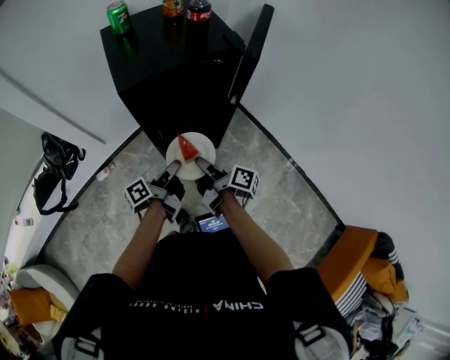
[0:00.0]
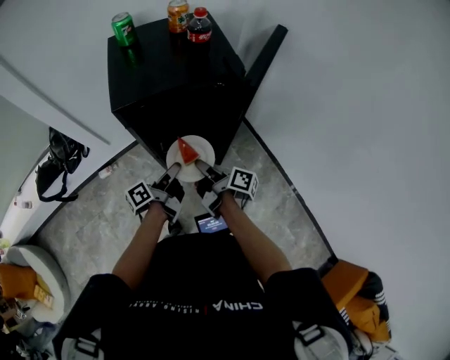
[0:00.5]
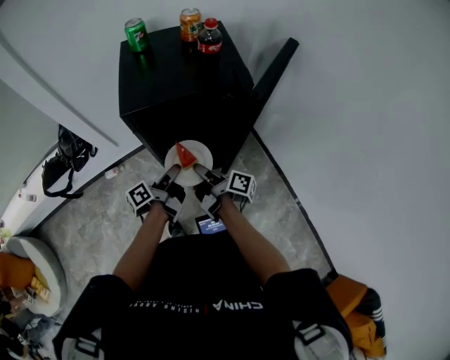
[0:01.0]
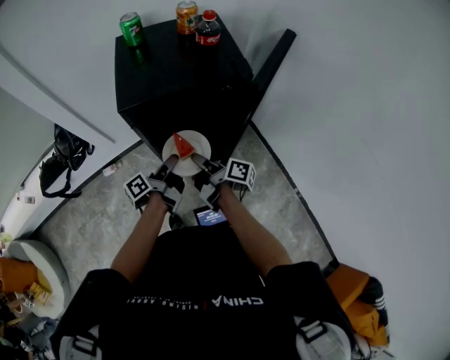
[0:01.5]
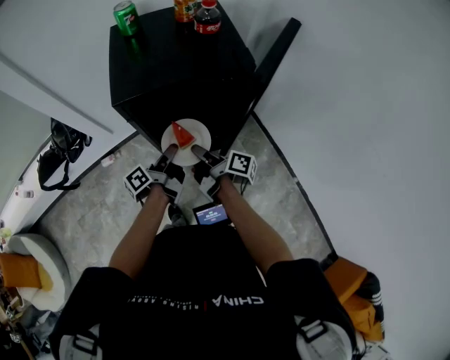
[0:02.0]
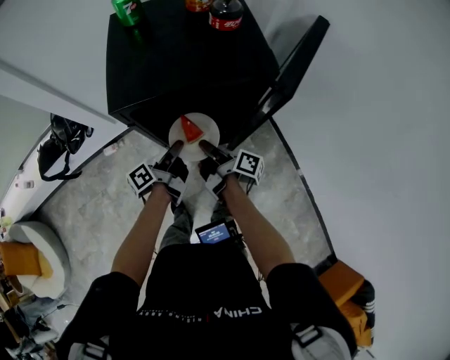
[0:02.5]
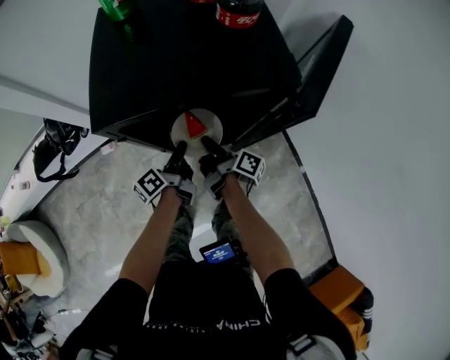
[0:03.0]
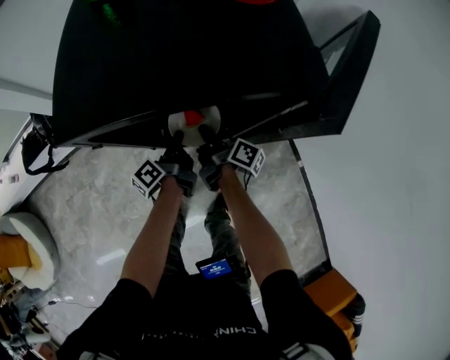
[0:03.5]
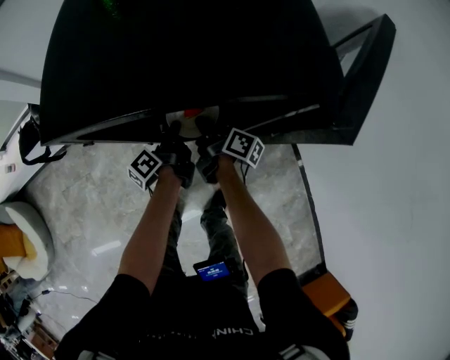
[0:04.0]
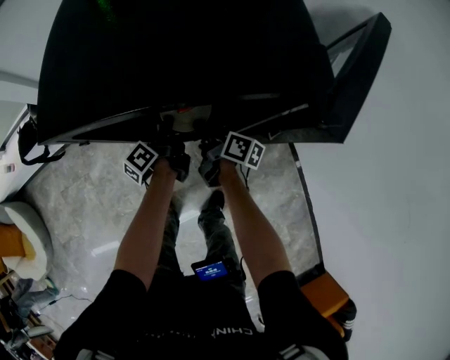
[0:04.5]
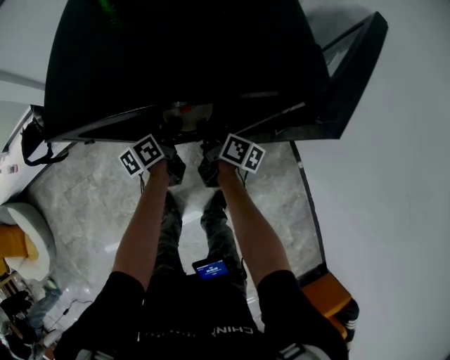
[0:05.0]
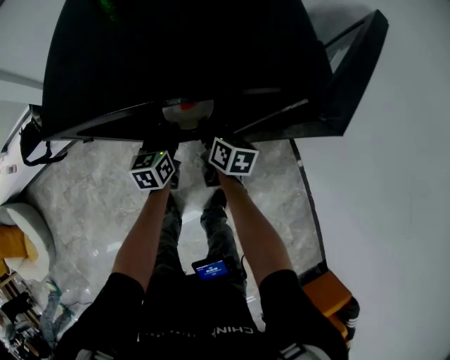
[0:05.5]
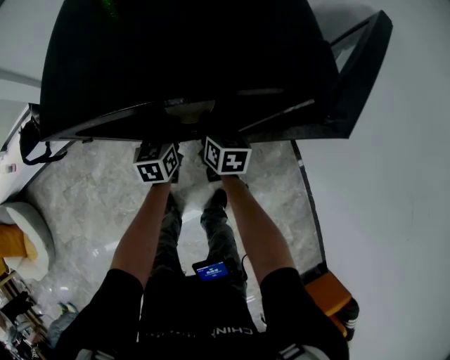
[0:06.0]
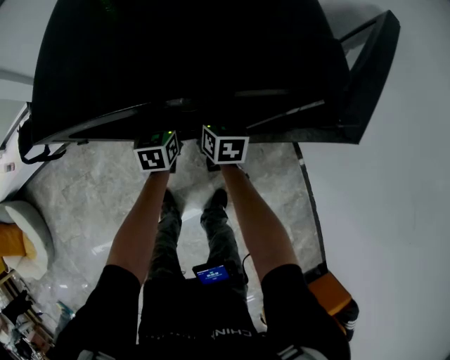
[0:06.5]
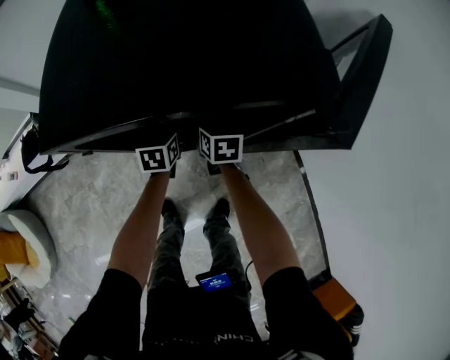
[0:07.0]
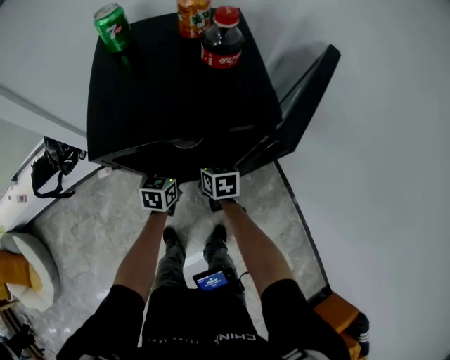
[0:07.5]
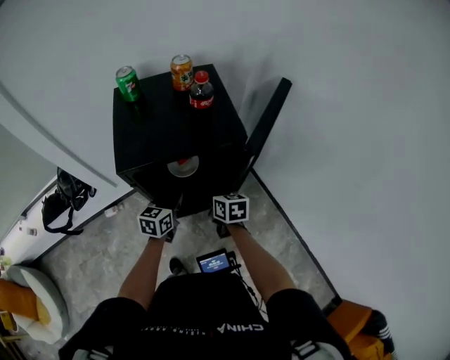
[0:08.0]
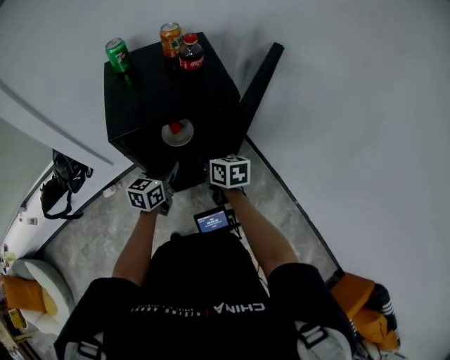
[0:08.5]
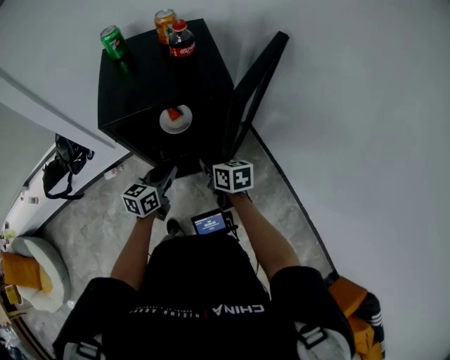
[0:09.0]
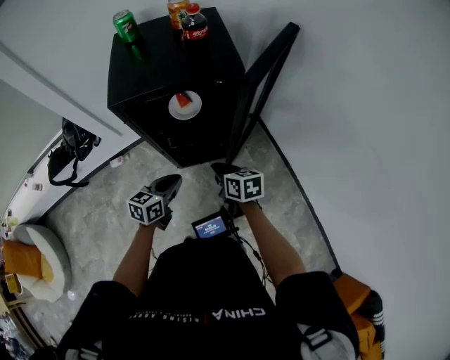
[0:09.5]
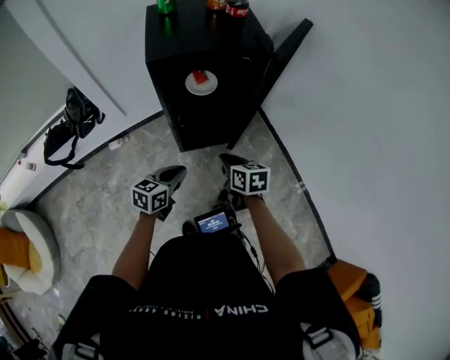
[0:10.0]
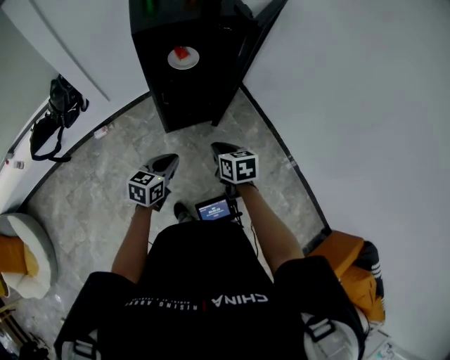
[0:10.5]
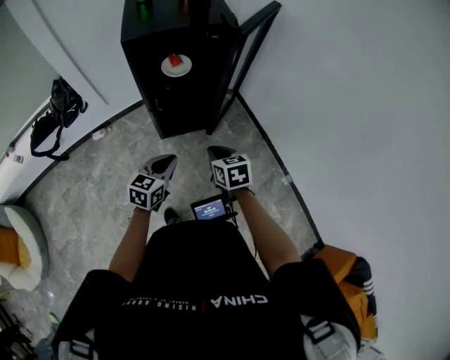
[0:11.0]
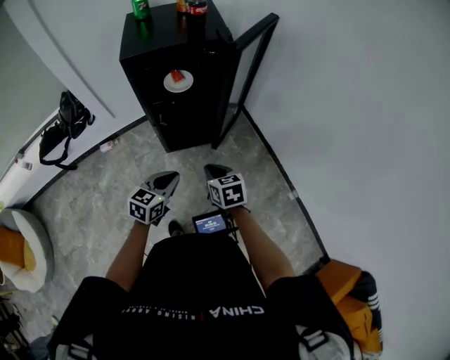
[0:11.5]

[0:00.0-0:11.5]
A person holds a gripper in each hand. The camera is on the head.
0:00.0 to 0:02.0: Both grippers move forward, roughly 10 cm.
0:02.0 to 0:04.0: The grippers both shift downward and forward by roughly 25 cm.
0:04.0 to 0:06.0: The right gripper twists approximately 50 degrees counterclockwise, seen from behind. Meanwhile the left gripper twists approximately 60 degrees clockwise, seen from behind.
0:06.0 to 0:07.5: Both grippers travel together upward, about 5 cm. The left gripper closes its fingers.
0:07.5 to 0:09.5: The two grippers go roughly 20 cm backward.
0:09.5 to 0:11.5: Both grippers travel together backward, some 20 cm.

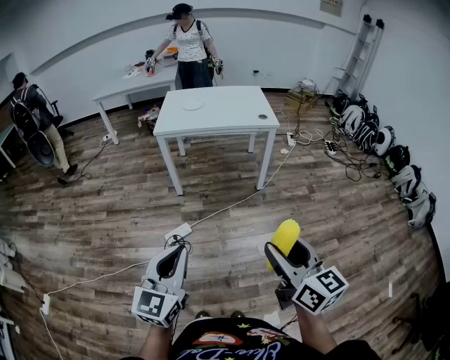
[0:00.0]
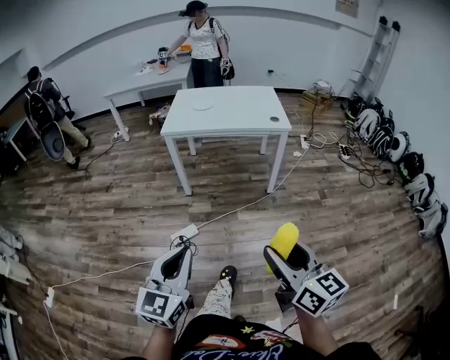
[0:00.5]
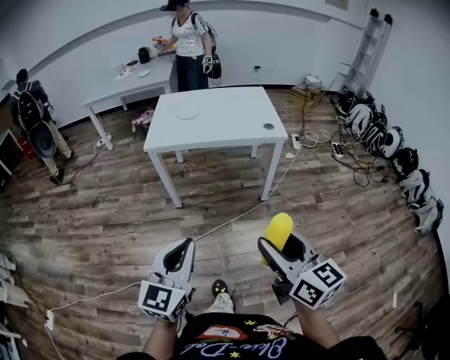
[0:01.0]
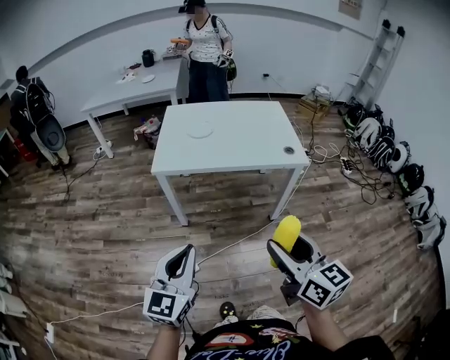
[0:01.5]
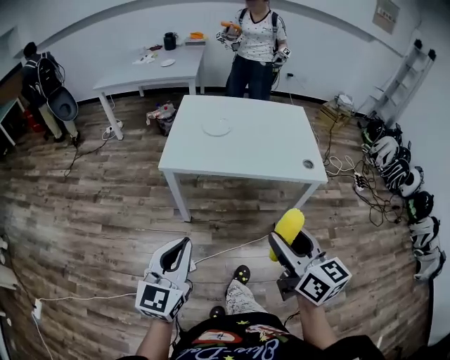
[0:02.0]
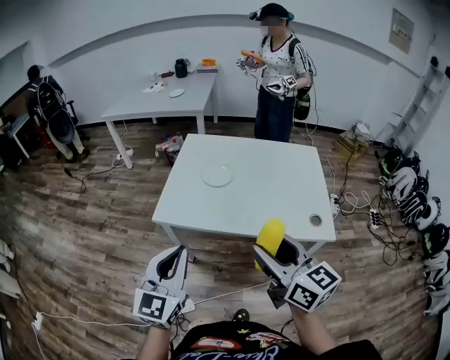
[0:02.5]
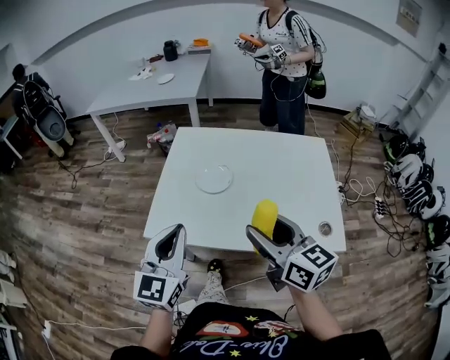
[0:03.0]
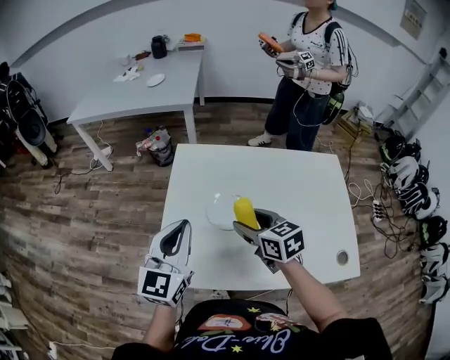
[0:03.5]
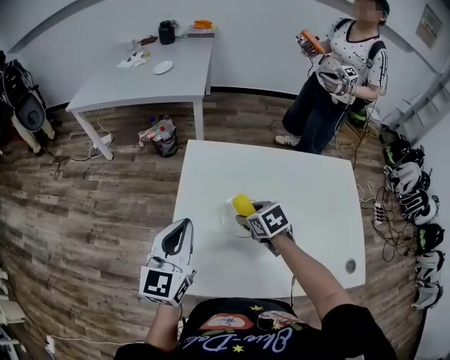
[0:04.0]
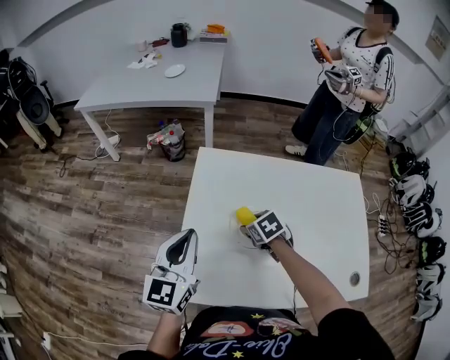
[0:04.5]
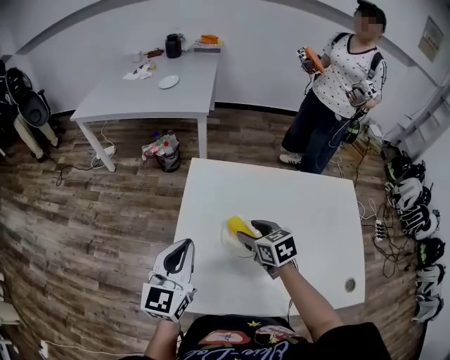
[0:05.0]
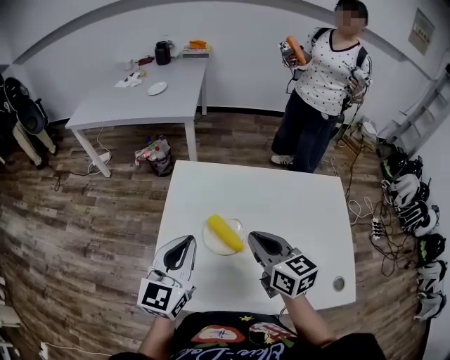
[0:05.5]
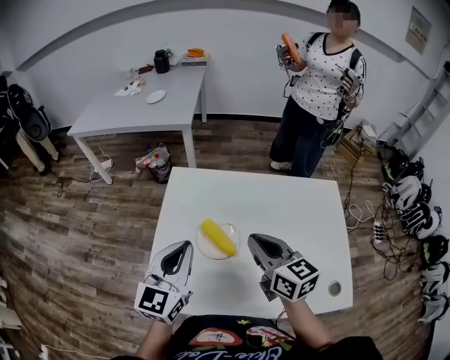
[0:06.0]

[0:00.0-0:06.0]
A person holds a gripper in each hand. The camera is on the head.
0:00.0 to 0:02.0: The two grippers travel together, forward, roughly 50 cm.
0:02.0 to 0:04.0: The pair of grippers is taken forward, some 60 cm. The right gripper points its fingers roughly 50 degrees further downward.
0:04.0 to 0:06.0: The right gripper shifts approximately 20 cm upward, to the right and backward, angles its fingers upward, by some 40 degrees, and closes. The left gripper travels to the right by about 10 cm.

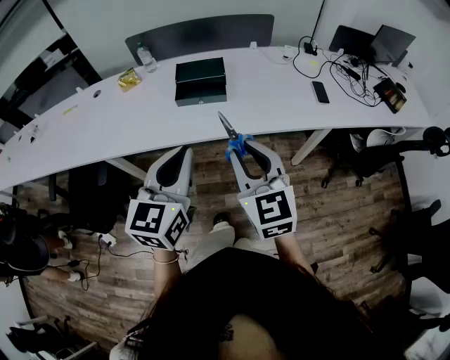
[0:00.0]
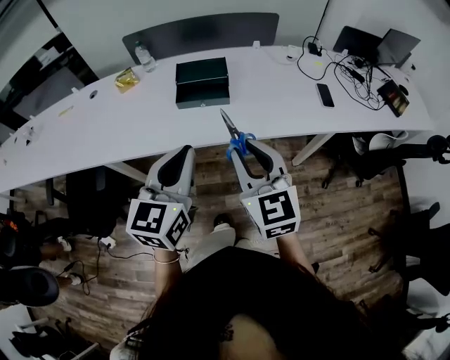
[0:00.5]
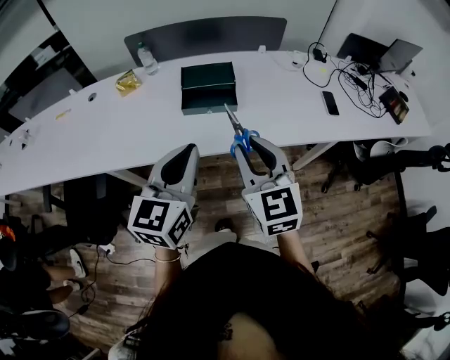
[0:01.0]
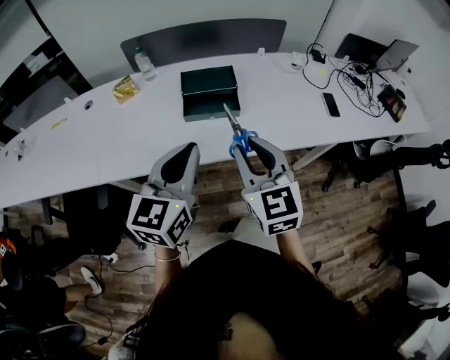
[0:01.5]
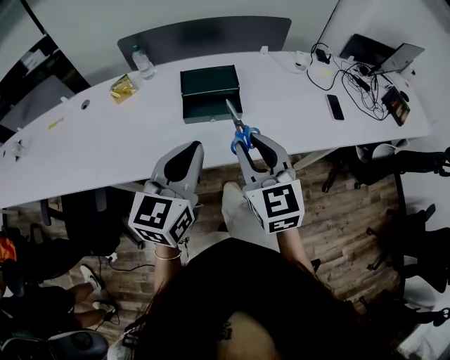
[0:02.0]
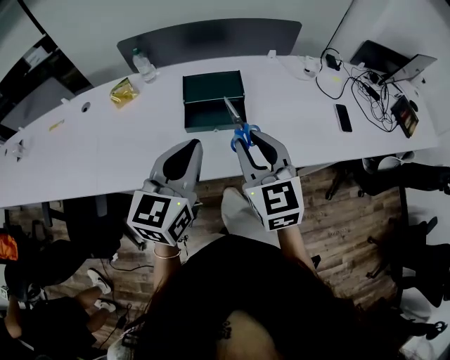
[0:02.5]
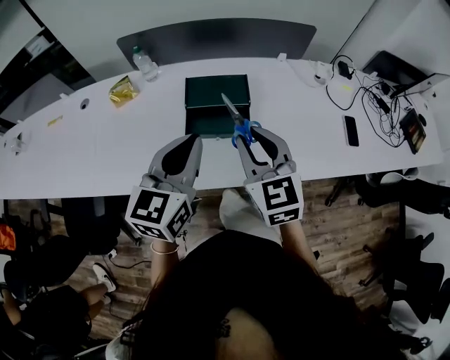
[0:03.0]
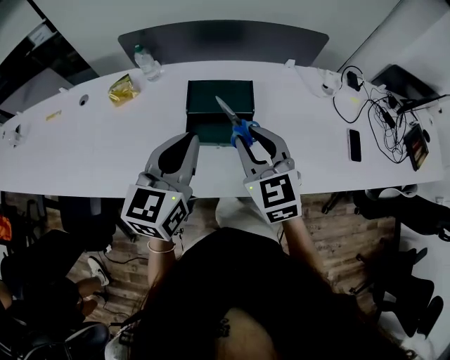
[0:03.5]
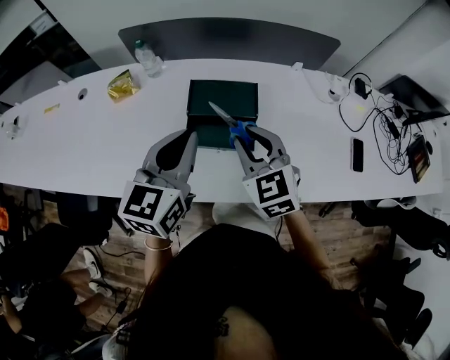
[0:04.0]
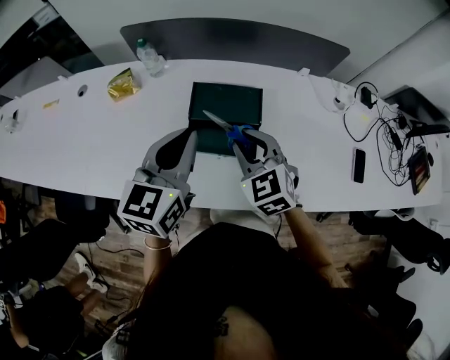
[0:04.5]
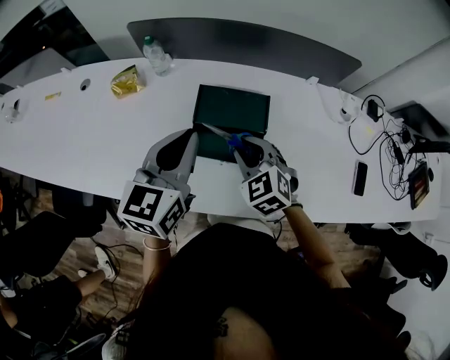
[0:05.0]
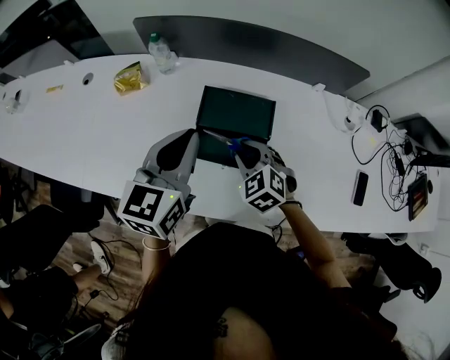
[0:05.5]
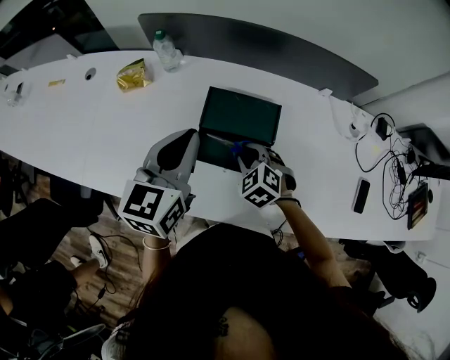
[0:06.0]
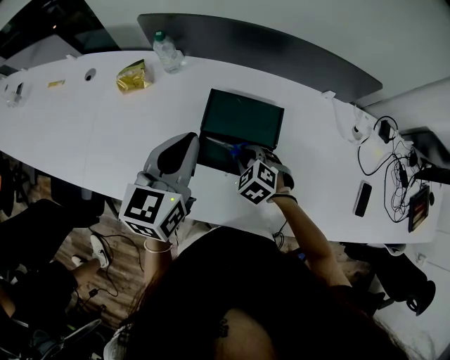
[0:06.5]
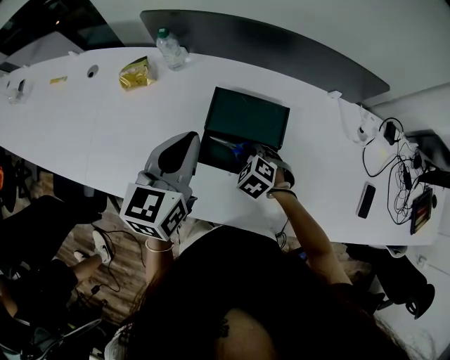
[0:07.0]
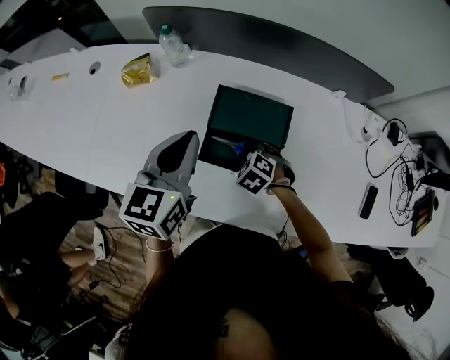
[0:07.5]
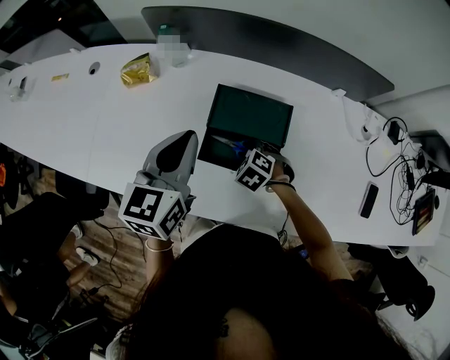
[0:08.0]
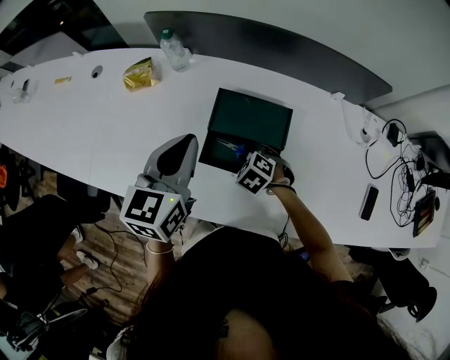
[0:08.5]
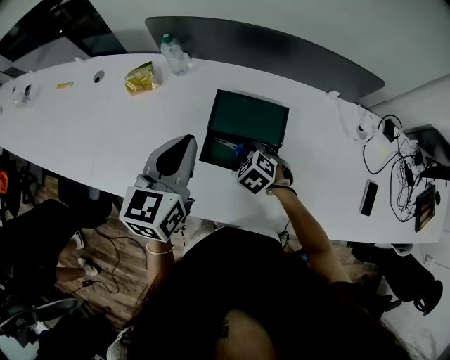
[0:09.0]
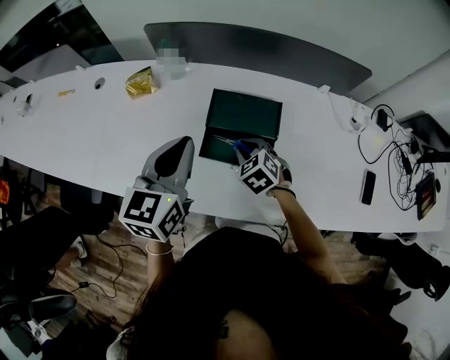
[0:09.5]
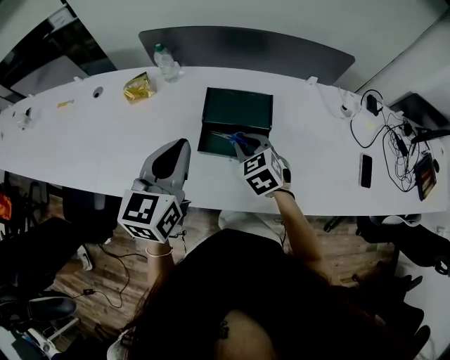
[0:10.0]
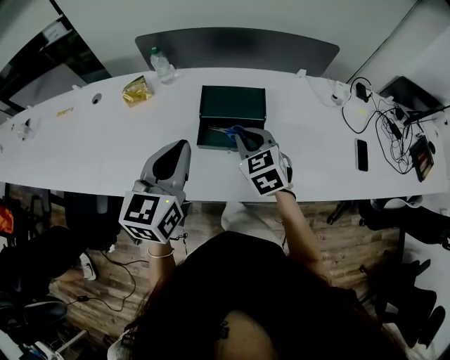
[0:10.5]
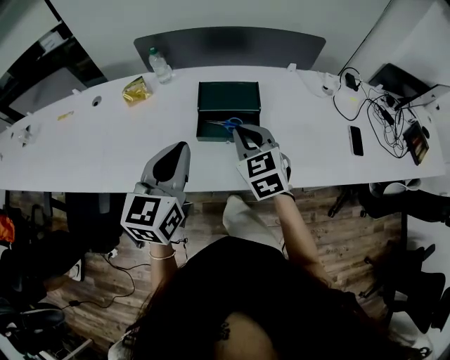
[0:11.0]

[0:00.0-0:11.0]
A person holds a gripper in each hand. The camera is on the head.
0:00.0 to 0:02.0: Both grippers travel together forward and to the left, some 20 cm.
0:02.0 to 0:03.5: The grippers both shift forward by roughly 20 cm.
0:03.5 to 0:05.5: The left gripper is displaced forward by approximately 10 cm; the right gripper travels downward and forward by approximately 20 cm, and swivels about 40 degrees.
0:05.5 to 0:07.5: The left gripper moves approximately 5 cm. Meanwhile the right gripper goes roughly 15 cm downward, and rotates approximately 20 degrees.
0:07.5 to 0:09.0: There are only small adjustments of the grippers.
0:09.0 to 0:11.0: The left gripper moves backward, roughly 20 cm, while the right gripper moves upward and backward, approximately 25 cm, tilts its fingers some 40 degrees upward, and closes its fingers.
